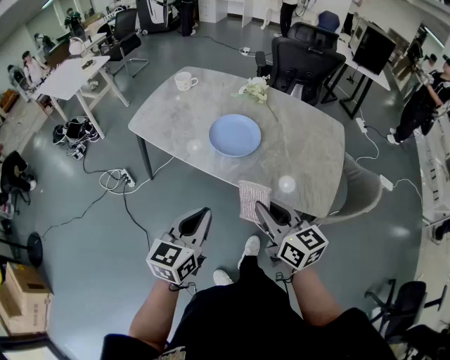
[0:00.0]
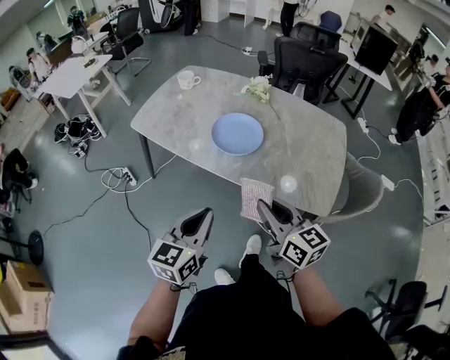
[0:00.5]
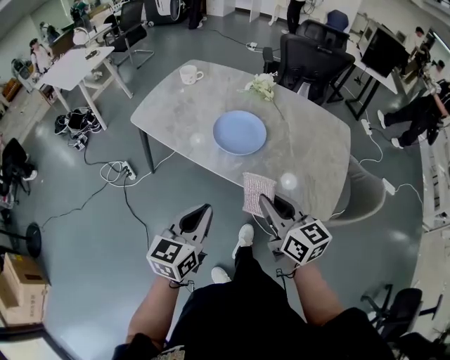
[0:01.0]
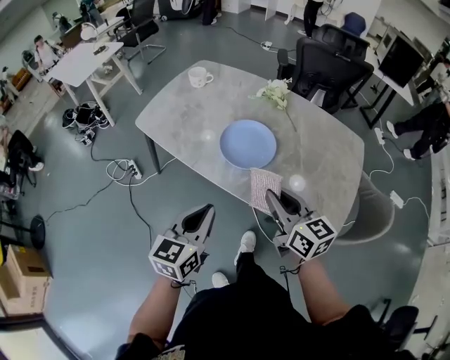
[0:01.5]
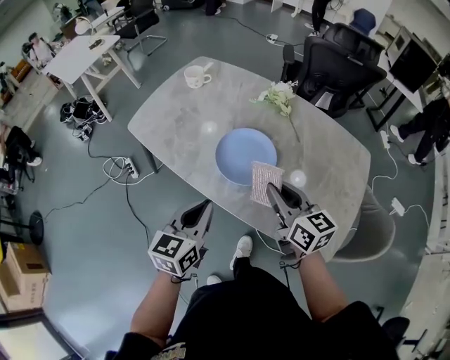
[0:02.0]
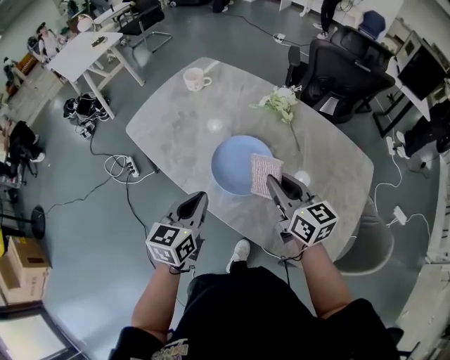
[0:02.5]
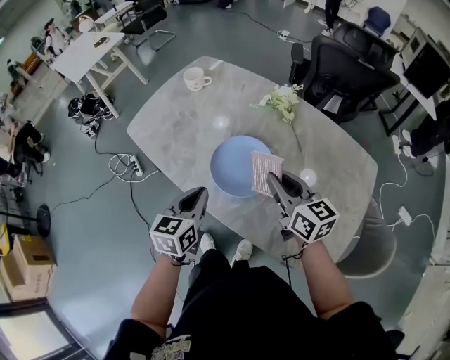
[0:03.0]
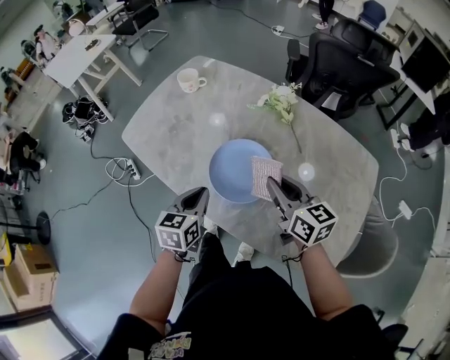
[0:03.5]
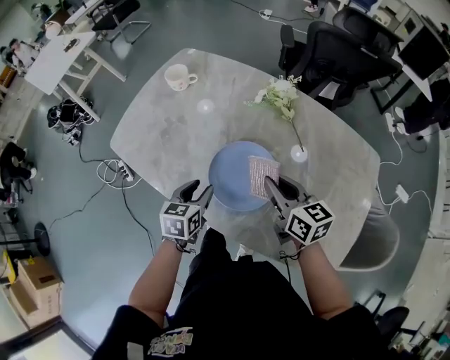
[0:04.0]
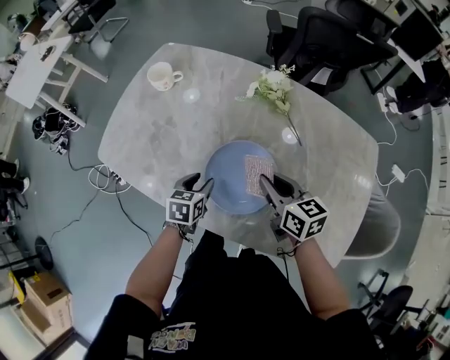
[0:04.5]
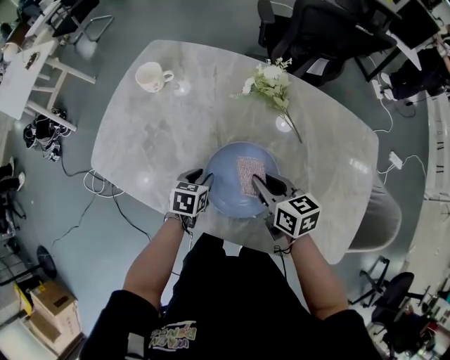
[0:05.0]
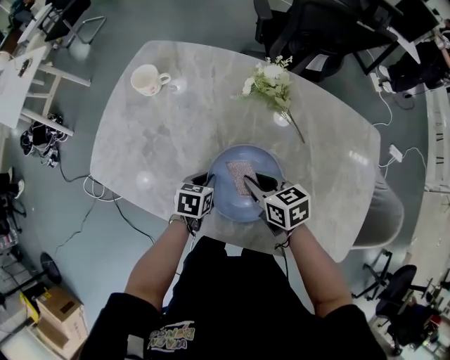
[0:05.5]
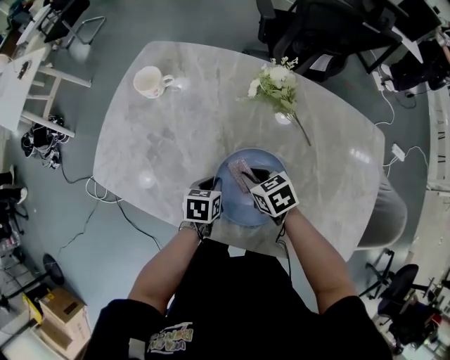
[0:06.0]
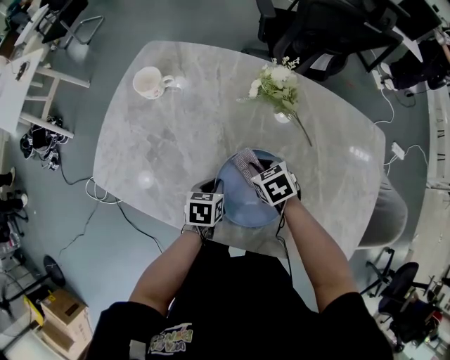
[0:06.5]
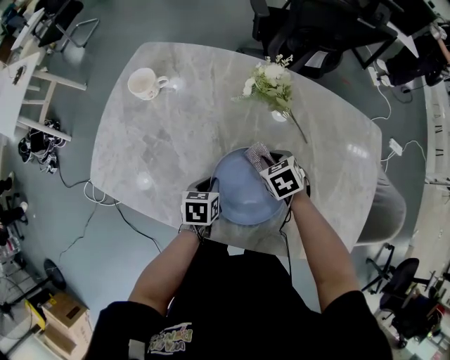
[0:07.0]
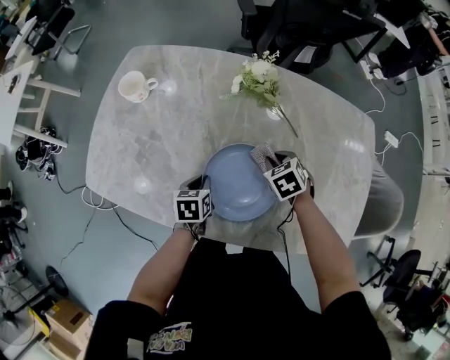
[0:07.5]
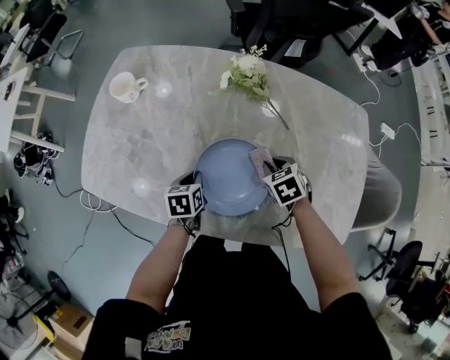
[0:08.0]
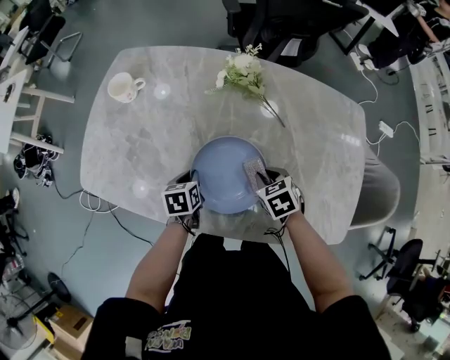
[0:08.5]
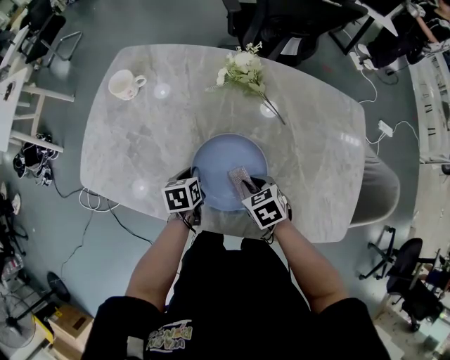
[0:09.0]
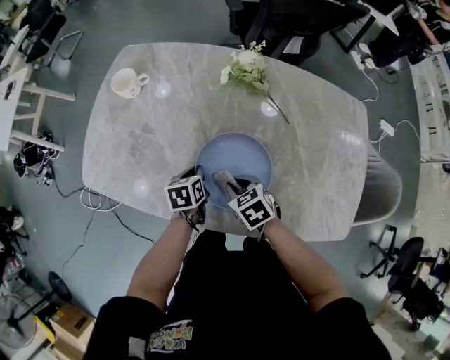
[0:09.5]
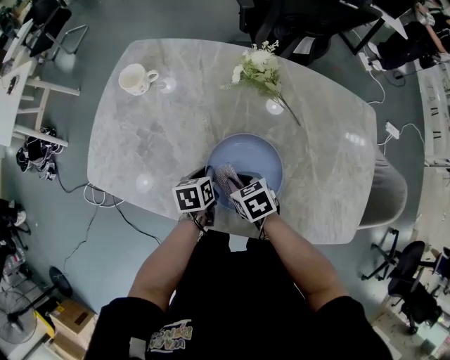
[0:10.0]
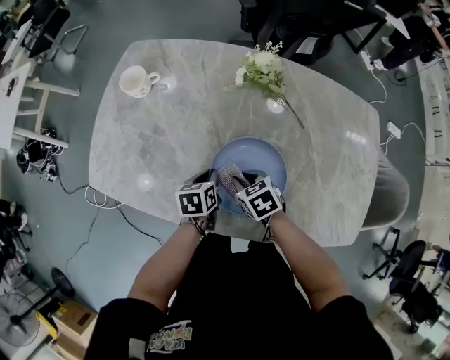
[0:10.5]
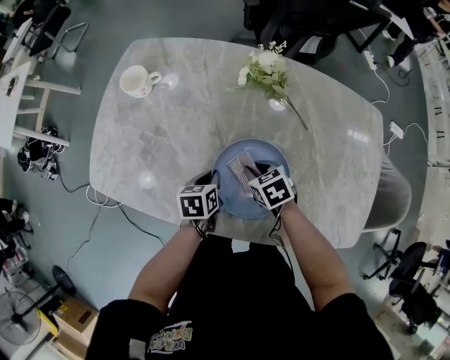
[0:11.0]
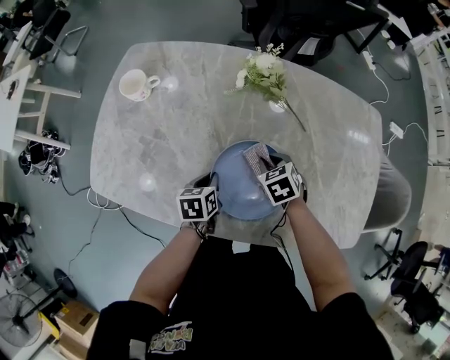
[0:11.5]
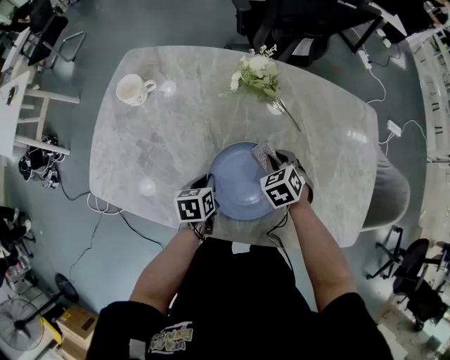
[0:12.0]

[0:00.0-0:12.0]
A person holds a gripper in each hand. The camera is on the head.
0:00.0 to 0:02.0: Both grippers move forward, approximately 20 cm.
0:02.0 to 0:04.0: The left gripper shifts about 25 cm forward and downward, changes its angle by about 20 degrees, and opens up; the right gripper travels forward by about 15 cm.
0:04.0 to 0:06.0: The right gripper travels downward, forward and to the left by about 20 cm, and tips its fingers downward by some 30 degrees. The left gripper shifts roughly 15 cm downward and forward, changes its angle by roughly 20 degrees, and closes up.
0:06.0 to 0:08.0: The right gripper moves to the right, approximately 15 cm, and swivels approximately 20 degrees.
0:08.0 to 0:10.0: The right gripper shifts roughly 15 cm to the left.
0:10.0 to 0:12.0: The right gripper moves to the right and forward, about 15 cm, and changes its angle by approximately 30 degrees.

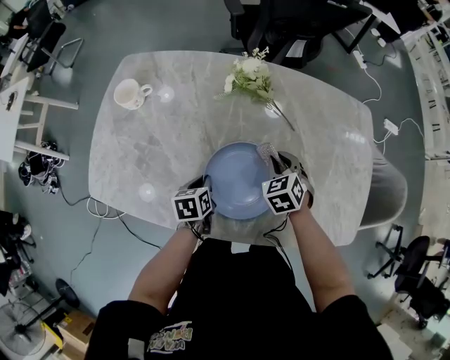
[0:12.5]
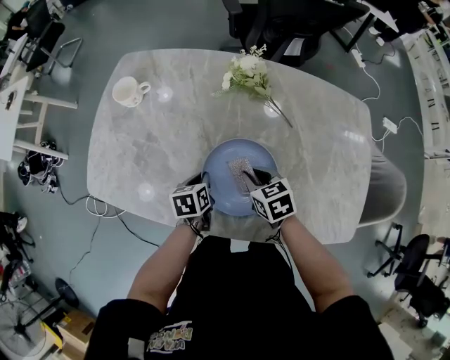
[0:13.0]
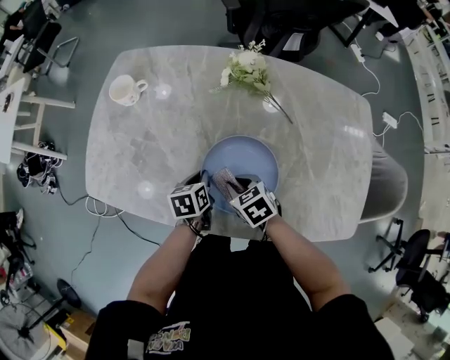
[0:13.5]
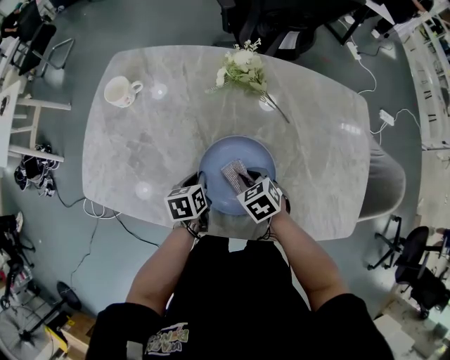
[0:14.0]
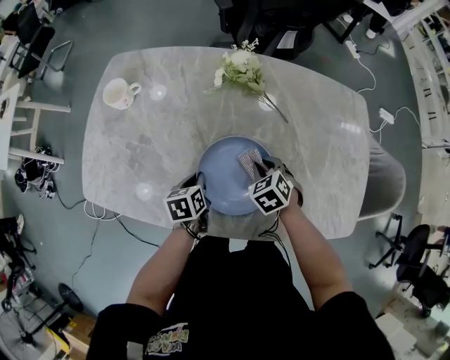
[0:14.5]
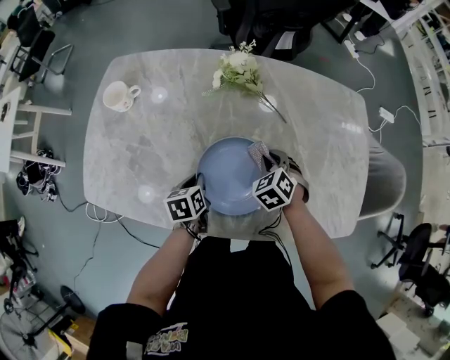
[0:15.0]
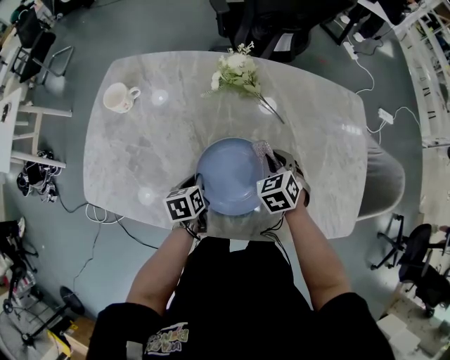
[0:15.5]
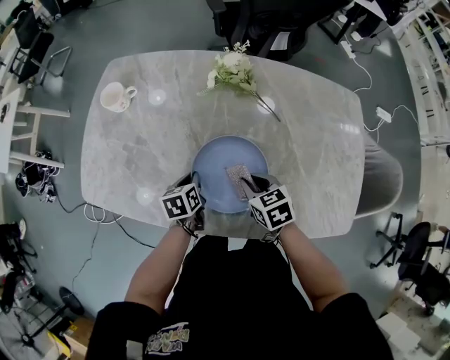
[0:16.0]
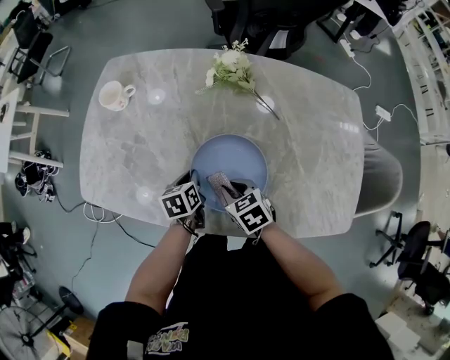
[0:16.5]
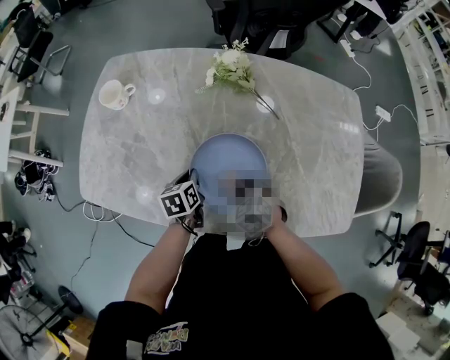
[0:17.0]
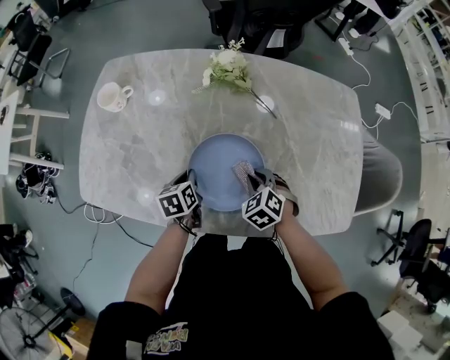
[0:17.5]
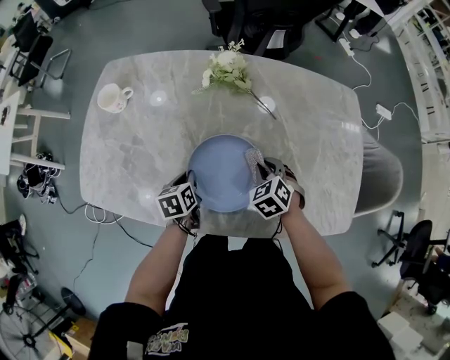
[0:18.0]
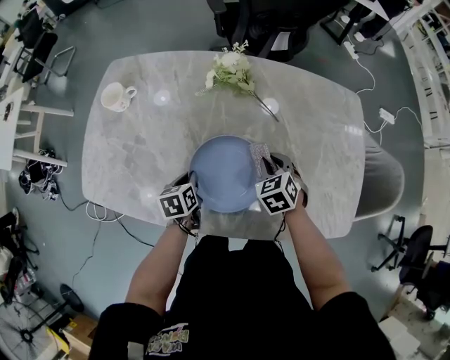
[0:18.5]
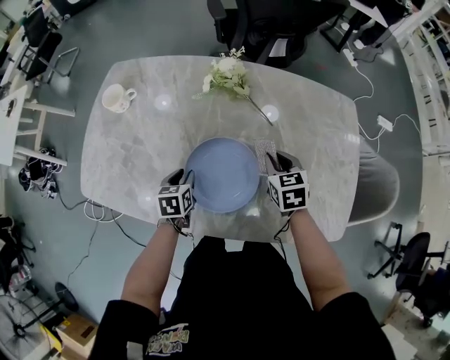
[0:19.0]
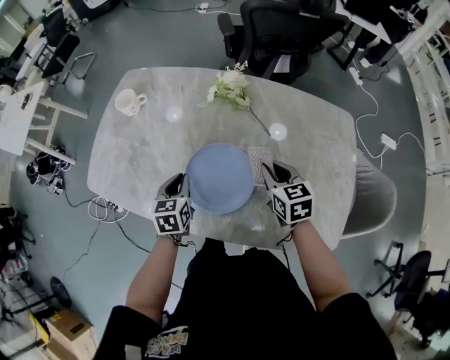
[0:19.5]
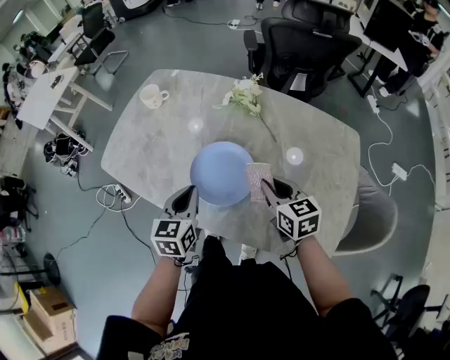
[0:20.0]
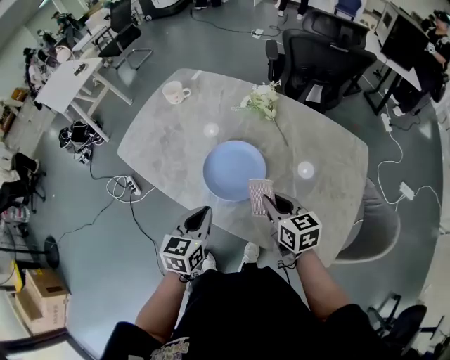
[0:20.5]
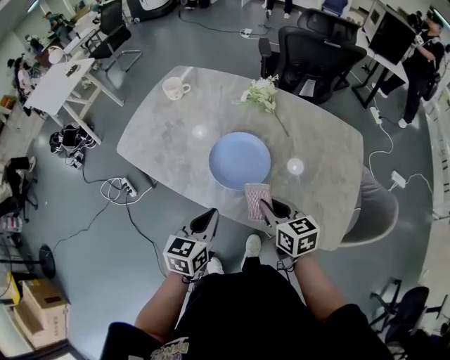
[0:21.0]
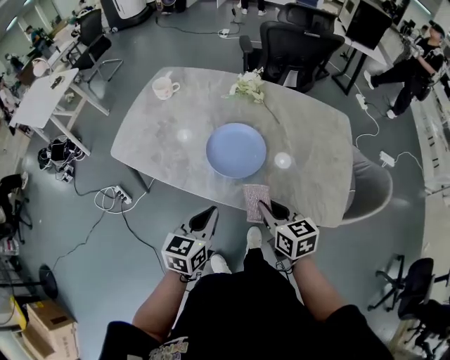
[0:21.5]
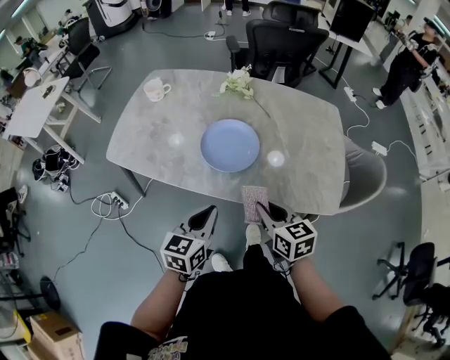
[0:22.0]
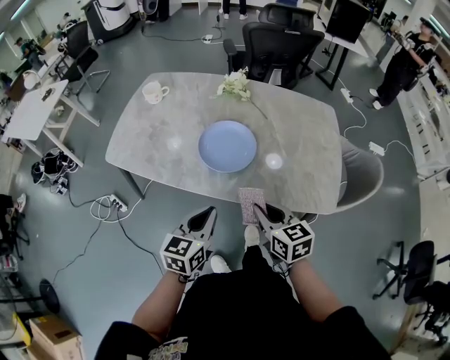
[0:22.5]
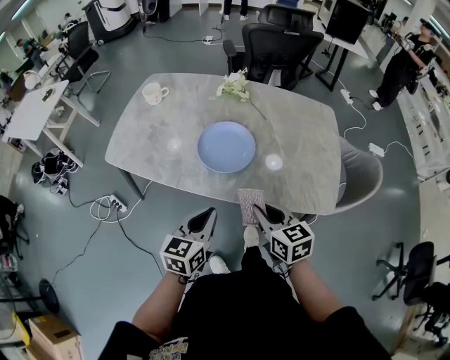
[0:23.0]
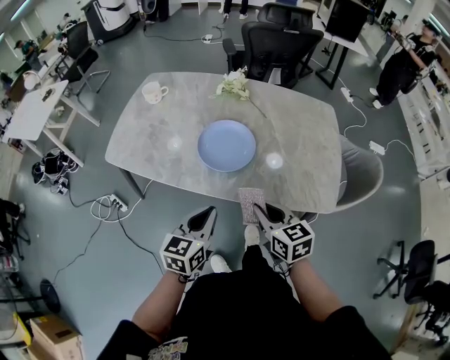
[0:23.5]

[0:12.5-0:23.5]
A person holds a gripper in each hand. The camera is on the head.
0:14.5 to 0:16.0: The right gripper is displaced backward by about 5 cm, and changes its angle by approximately 30 degrees.
0:16.0 to 0:18.0: The right gripper is displaced to the right by approximately 5 cm, and turns by roughly 30 degrees.
0:18.0 to 0:20.0: Both grippers move upward, some 15 cm. The right gripper swivels approximately 50 degrees. The left gripper swivels about 30 degrees, and opens, then closes again.
0:20.0 to 0:21.5: The right gripper heads backward and to the left, covering roughly 20 cm; the left gripper moves backward, about 20 cm.
0:21.5 to 0:23.5: The right gripper heads backward, covering some 5 cm.

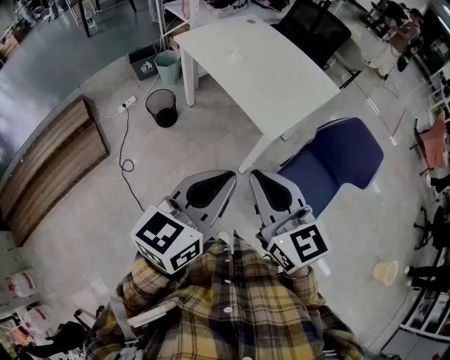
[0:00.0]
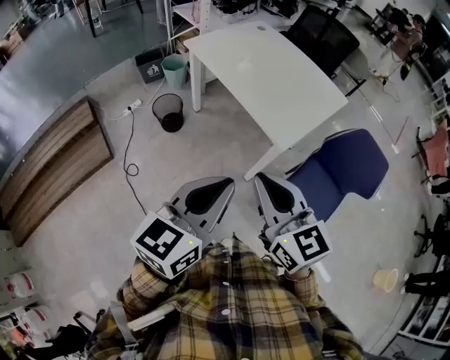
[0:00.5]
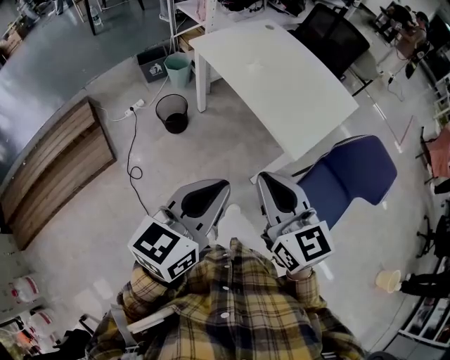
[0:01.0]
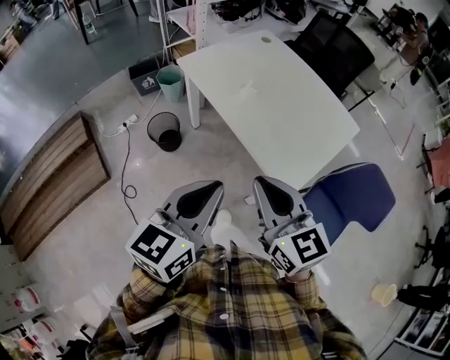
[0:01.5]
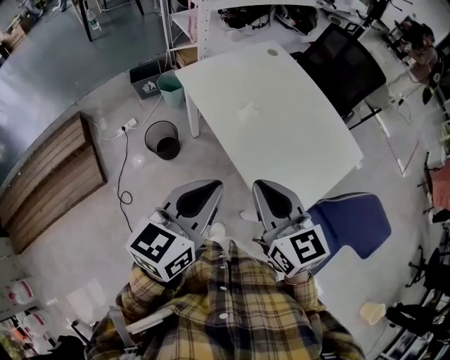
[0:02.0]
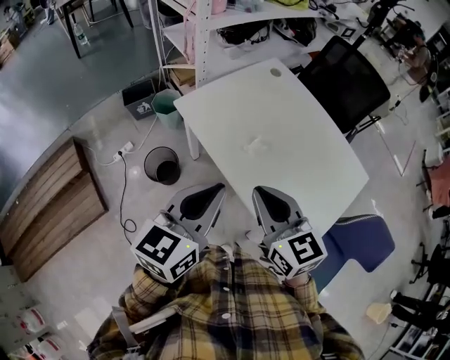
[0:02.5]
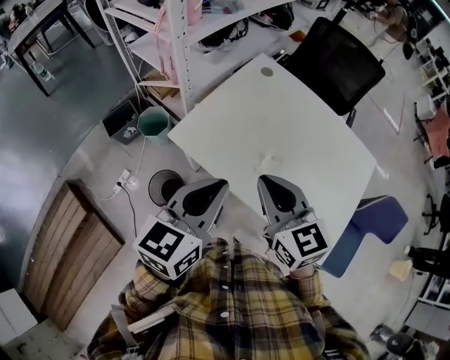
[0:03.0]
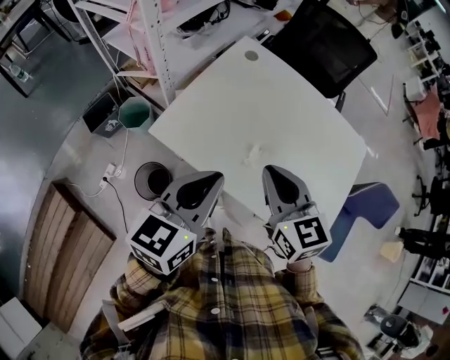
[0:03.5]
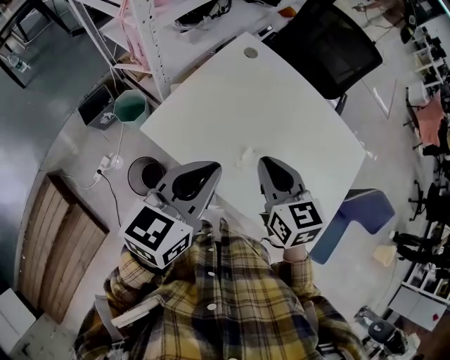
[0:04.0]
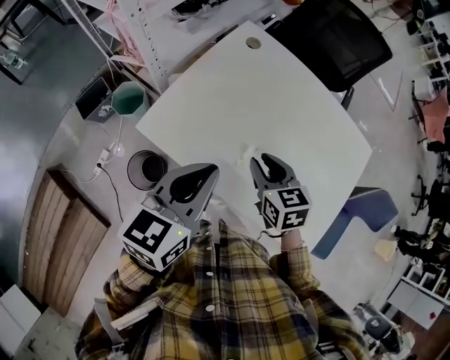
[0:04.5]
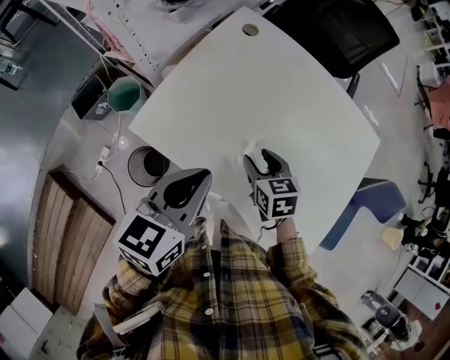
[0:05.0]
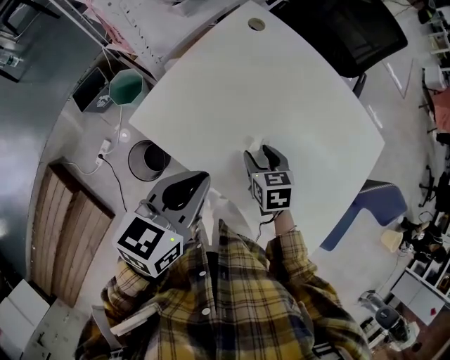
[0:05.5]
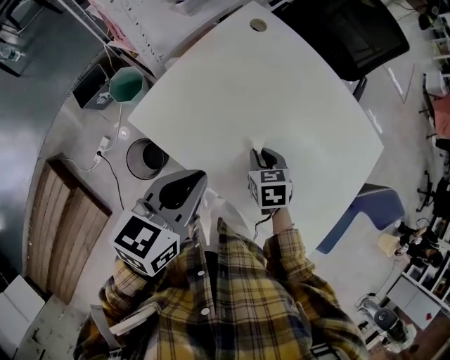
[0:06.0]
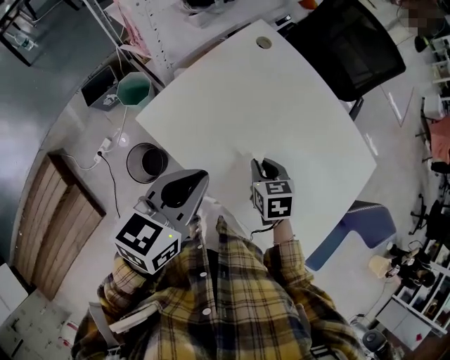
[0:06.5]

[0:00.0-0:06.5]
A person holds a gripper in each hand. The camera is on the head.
0:00.0 to 0:02.0: Both grippers travel together forward, some 35 cm.
0:02.0 to 0:04.5: The right gripper shifts by some 40 cm, changes its angle by some 40 degrees, and opens, while the left gripper ends up roughly 35 cm from where it was, and rotates about 20 degrees.
0:04.5 to 0:06.5: The right gripper shifts some 10 cm downward, and opens, then closes once more.
